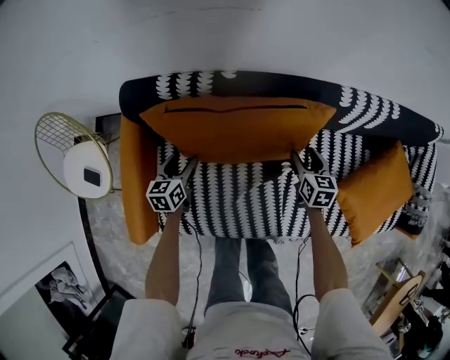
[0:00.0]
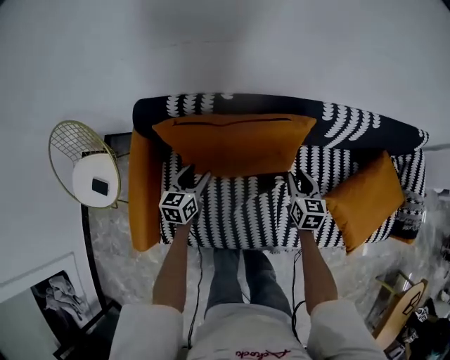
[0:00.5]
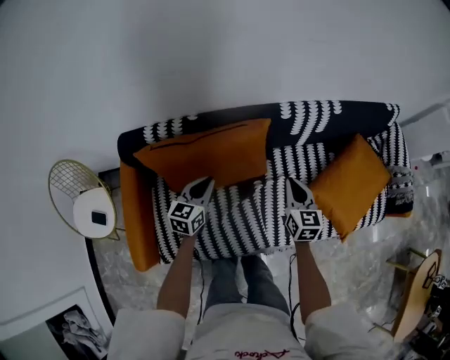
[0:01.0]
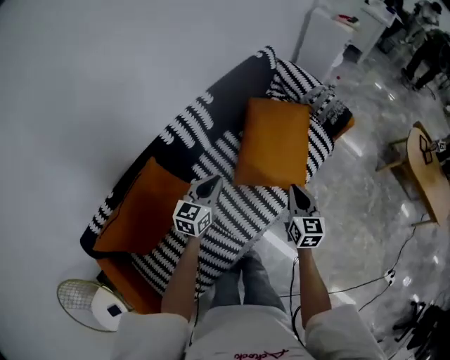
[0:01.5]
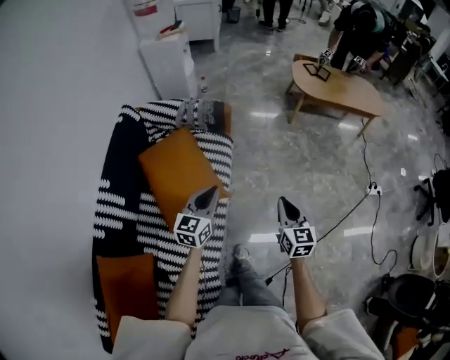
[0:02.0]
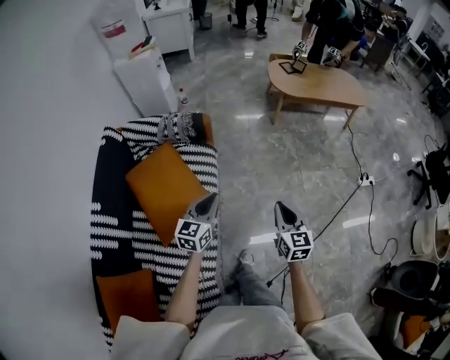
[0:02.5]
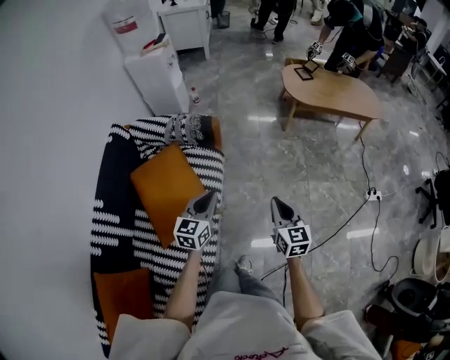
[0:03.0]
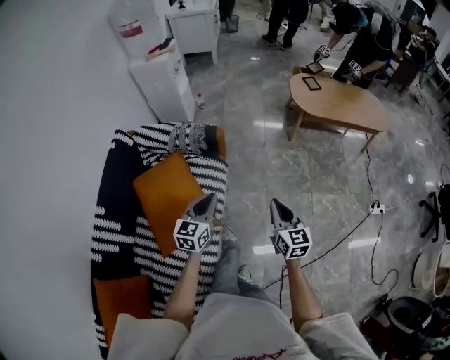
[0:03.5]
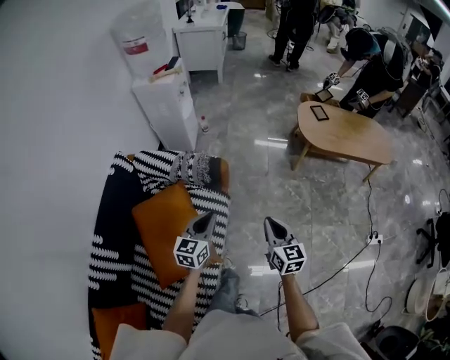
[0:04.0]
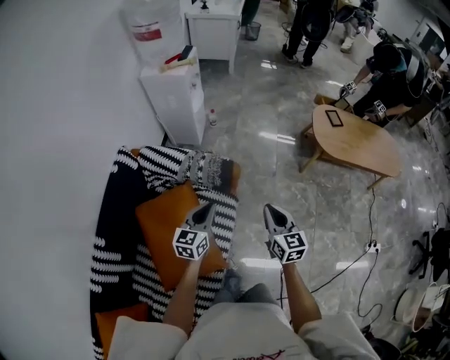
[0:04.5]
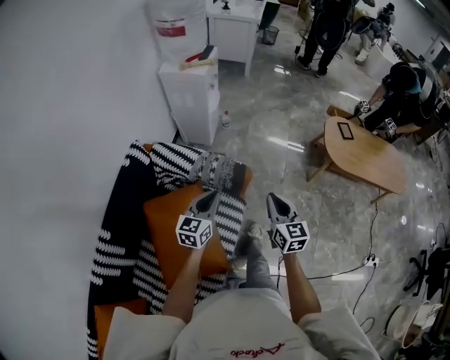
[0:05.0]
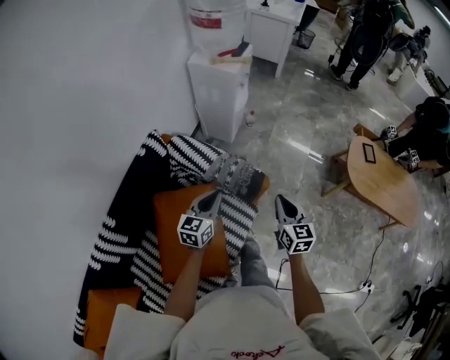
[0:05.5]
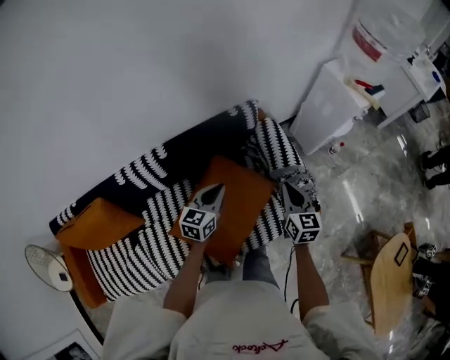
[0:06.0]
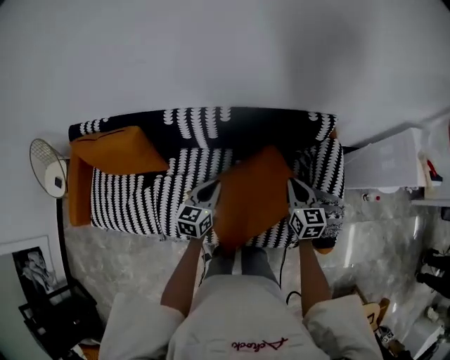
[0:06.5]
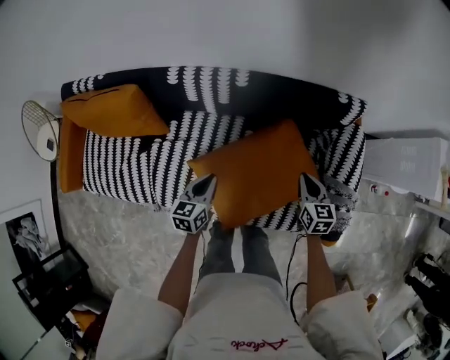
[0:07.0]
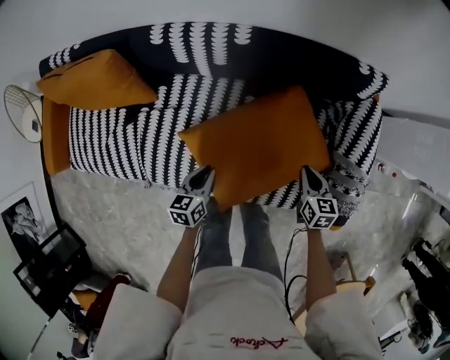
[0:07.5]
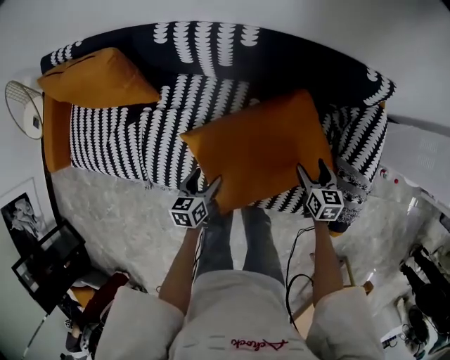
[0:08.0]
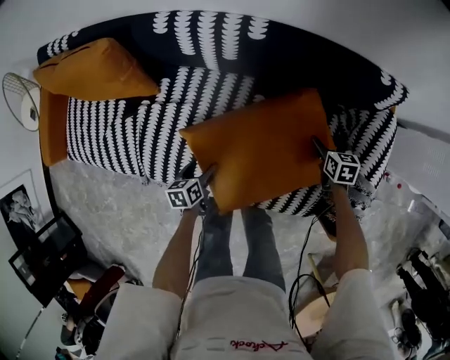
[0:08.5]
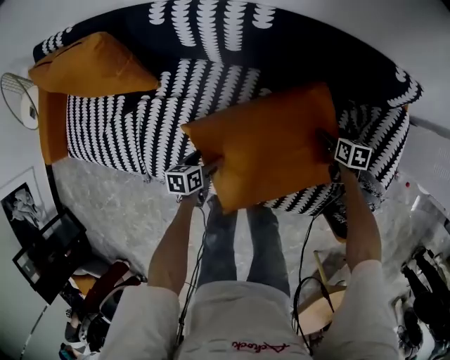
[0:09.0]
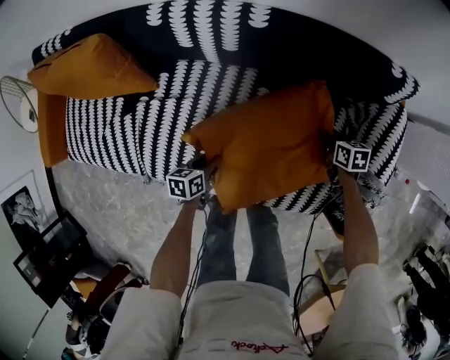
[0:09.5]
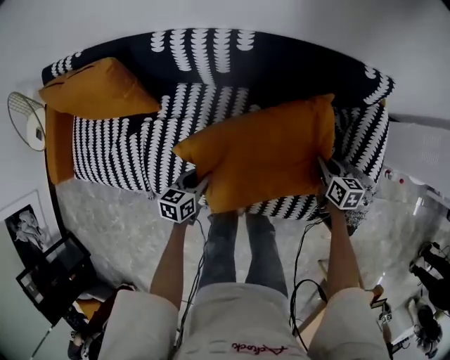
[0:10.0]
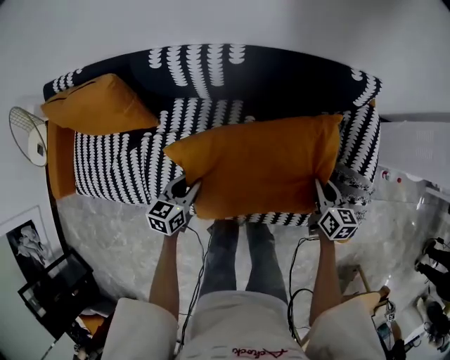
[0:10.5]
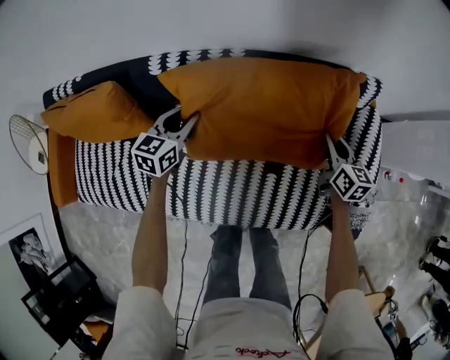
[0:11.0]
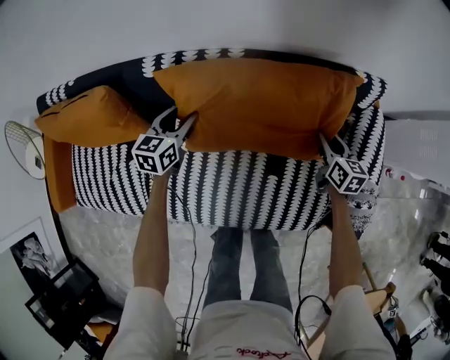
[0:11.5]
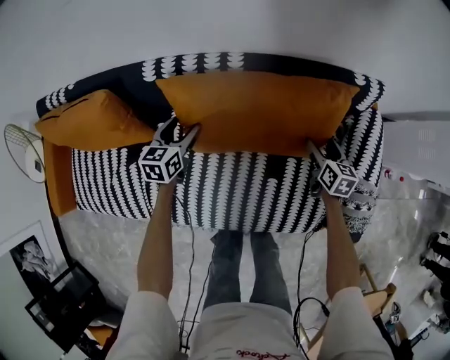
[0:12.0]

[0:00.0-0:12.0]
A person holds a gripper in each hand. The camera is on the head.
0:00.0 to 0:02.0: The pair of grippers is taken approximately 80 cm. The left gripper changes its angle by about 100 degrees, and closes its fingers; the right gripper changes its angle by roughly 90 degrees, and closes up.
0:02.0 to 0:04.0: Both grippers move forward, some 25 cm.
0:04.0 to 0:06.0: The left gripper shifts by some 30 cm, and turns by some 50 degrees. Meanwhile the right gripper shifts by roughly 50 cm, and swivels roughly 50 degrees.
0:06.0 to 0:08.0: Both grippers move downward, some 30 cm. The left gripper changes its angle by some 60 degrees, and opens up. The right gripper changes its angle by approximately 40 degrees, and opens its fingers.
0:08.0 to 0:10.0: The right gripper travels downward and back again, roughly 15 cm each way, and closes its fingers. The left gripper reaches roughly 10 cm downward, then returns, and closes its fingers.
0:10.0 to 0:12.0: The left gripper travels forward by roughly 25 cm, and opens its fingers. Meanwhile the right gripper moves forward, about 10 cm, and opens.

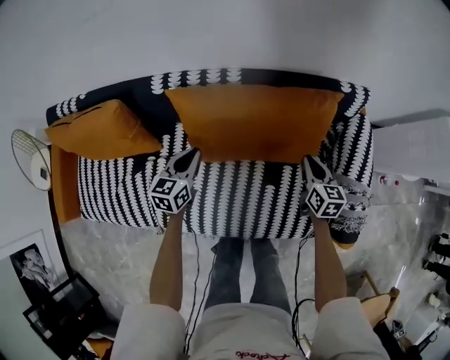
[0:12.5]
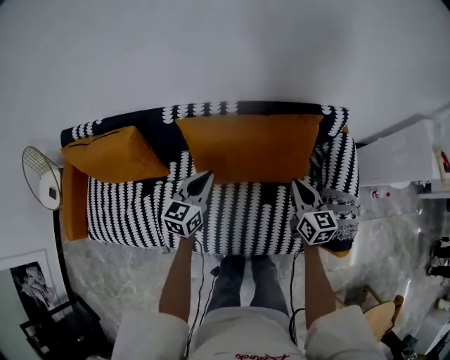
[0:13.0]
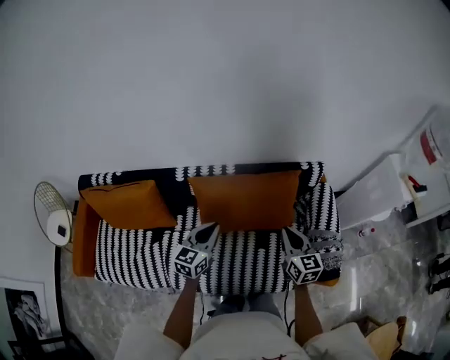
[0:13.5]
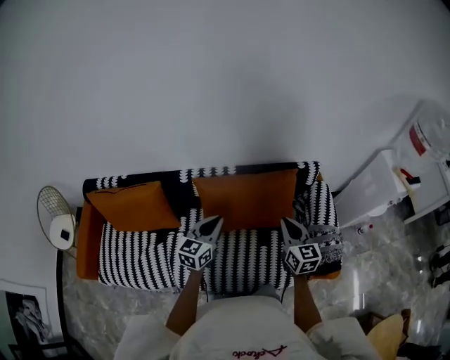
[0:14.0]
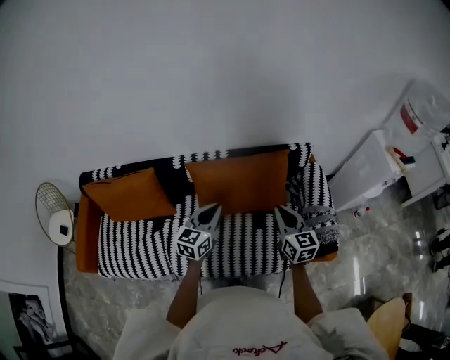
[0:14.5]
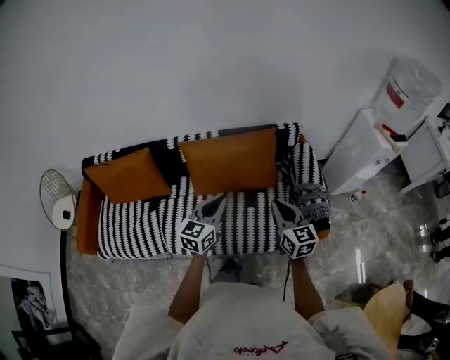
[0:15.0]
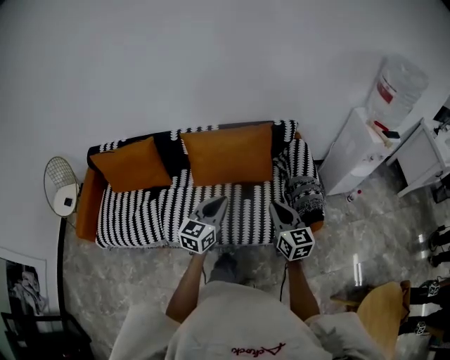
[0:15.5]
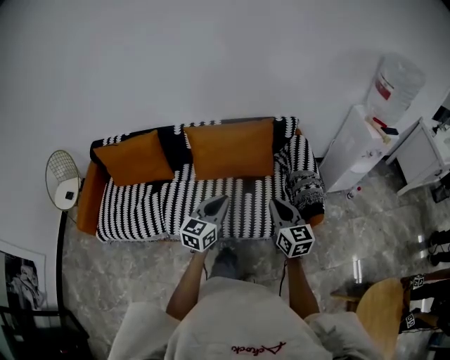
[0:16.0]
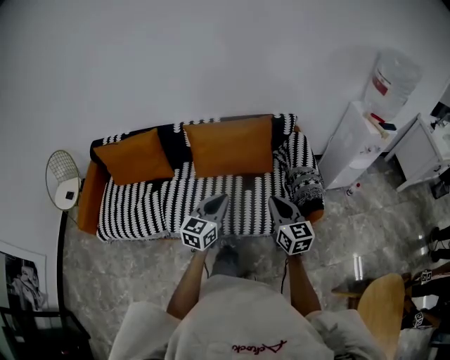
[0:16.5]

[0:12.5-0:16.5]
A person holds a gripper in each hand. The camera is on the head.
0:12.5 to 0:14.5: Both grippers travel together upward and backward, some 30 cm. The left gripper rotates about 20 degrees. The right gripper changes its angle by roughly 20 degrees.
0:14.5 to 0:16.5: The right gripper travels backward by about 25 cm; the left gripper shifts approximately 30 cm backward and to the right.

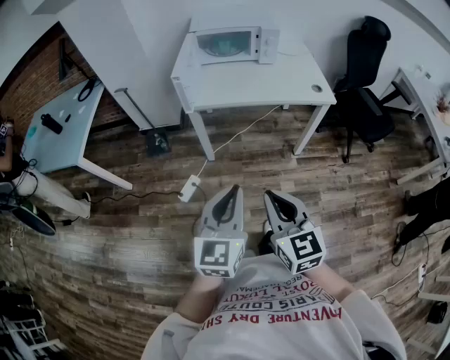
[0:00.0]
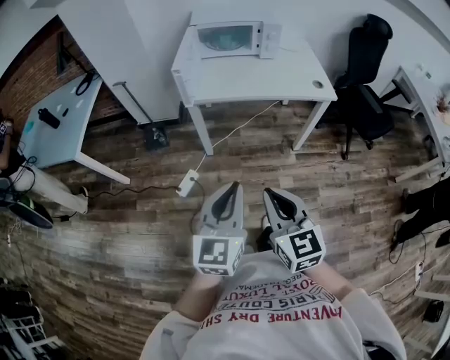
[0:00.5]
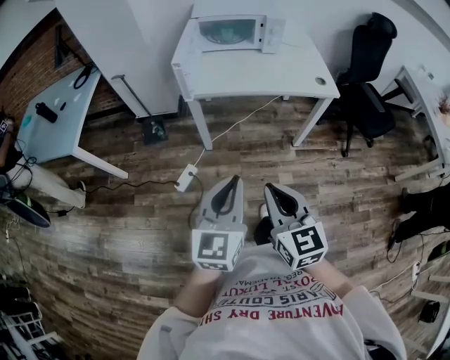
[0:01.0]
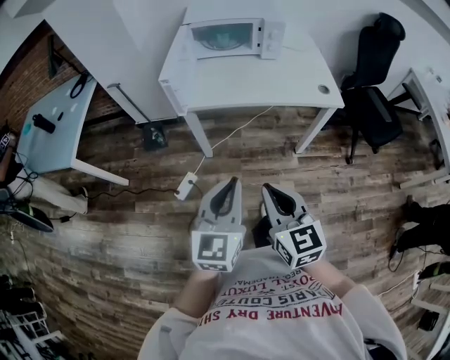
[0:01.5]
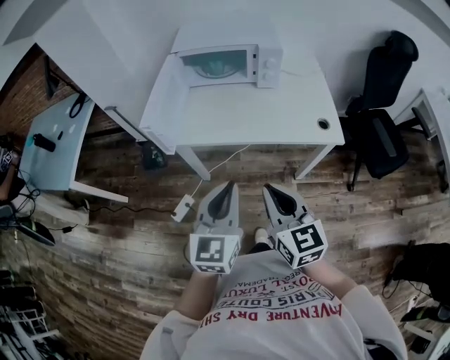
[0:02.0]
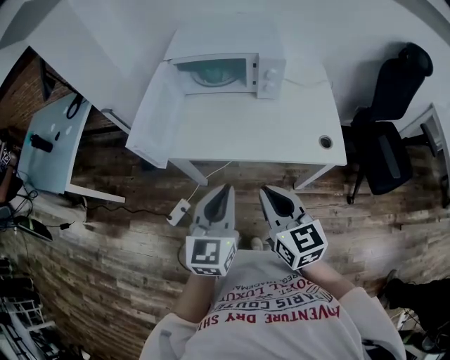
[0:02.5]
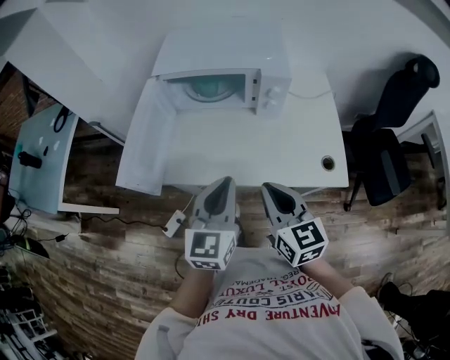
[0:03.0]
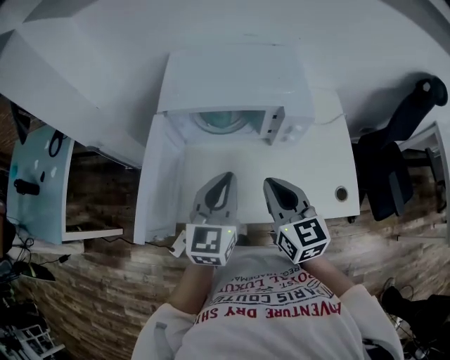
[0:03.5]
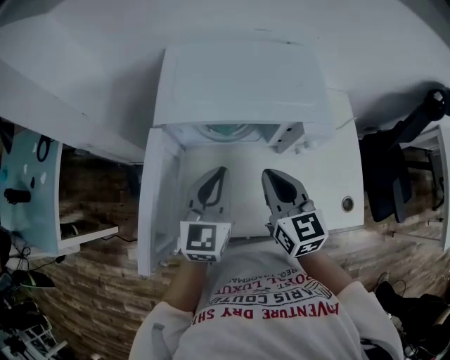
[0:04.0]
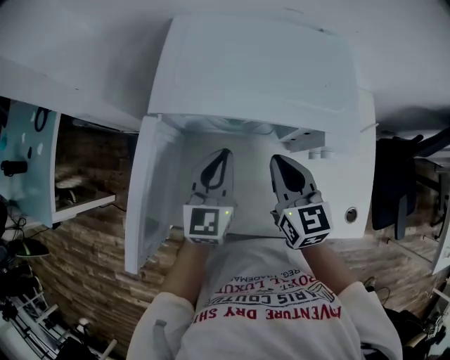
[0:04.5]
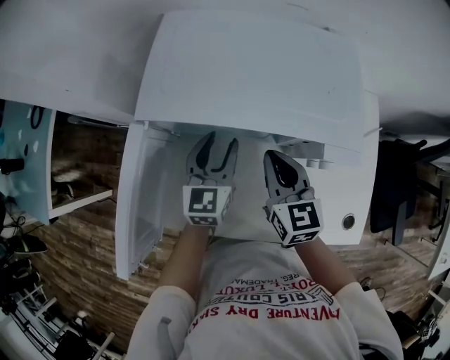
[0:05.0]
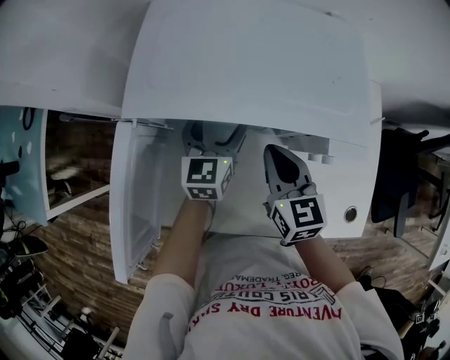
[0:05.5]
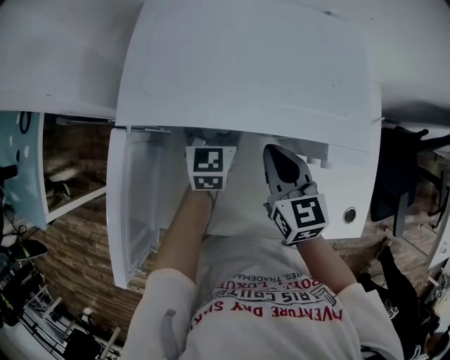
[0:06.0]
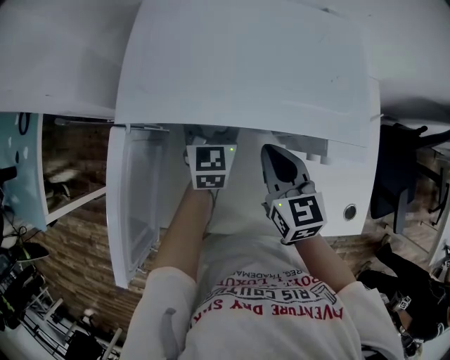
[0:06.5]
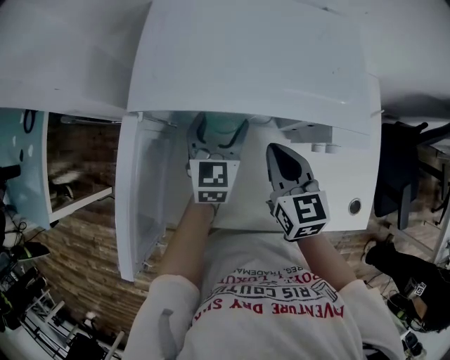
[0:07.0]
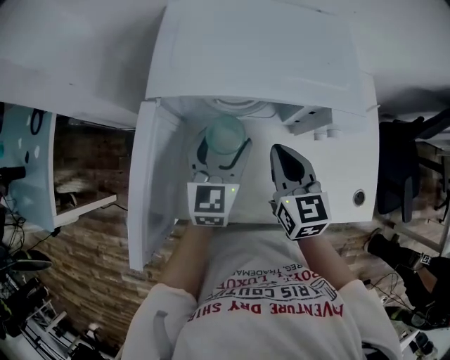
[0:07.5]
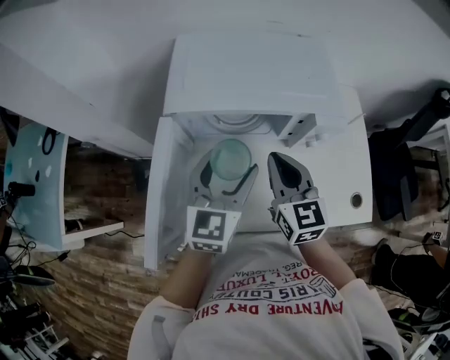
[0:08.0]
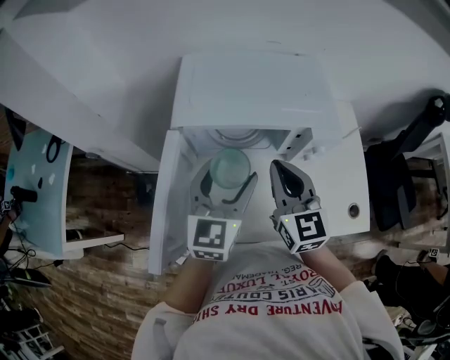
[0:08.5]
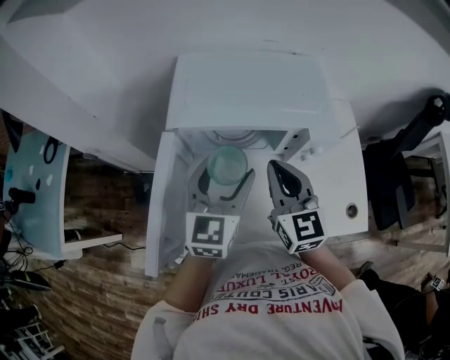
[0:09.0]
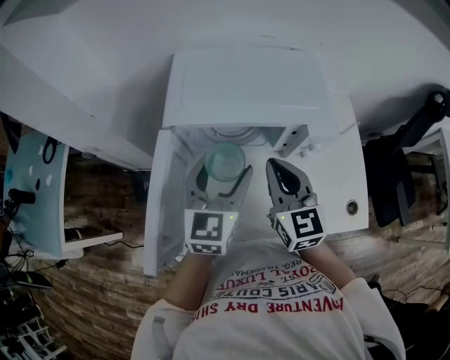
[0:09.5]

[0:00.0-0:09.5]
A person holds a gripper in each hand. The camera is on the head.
0:00.0 to 0:02.0: Both grippers move forward and to the right, roughly 25 cm.
0:02.0 to 0:04.0: The pair of grippers is taken forward, roughly 40 cm.
0:04.0 to 0:05.5: The right gripper shifts some 10 cm forward and downward. The left gripper travels forward and downward by roughly 20 cm, and opens.
0:05.5 to 0:07.5: The left gripper shifts approximately 10 cm backward; the right gripper changes place by roughly 5 cm.
0:07.5 to 0:09.5: The grippers both shift upward by about 10 cm.

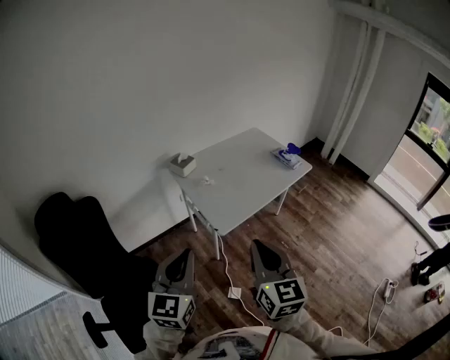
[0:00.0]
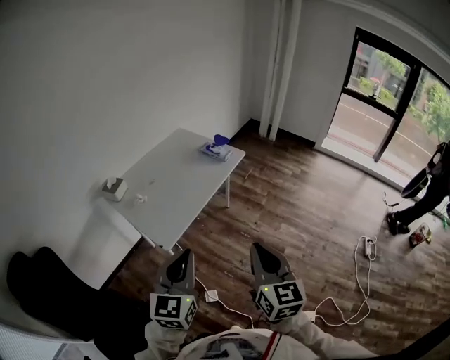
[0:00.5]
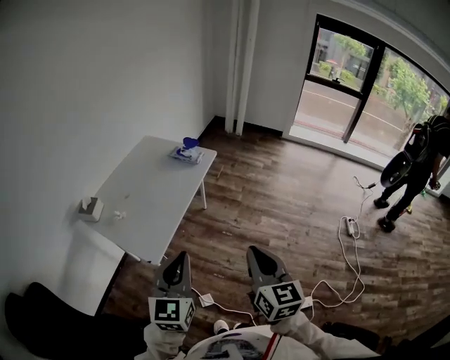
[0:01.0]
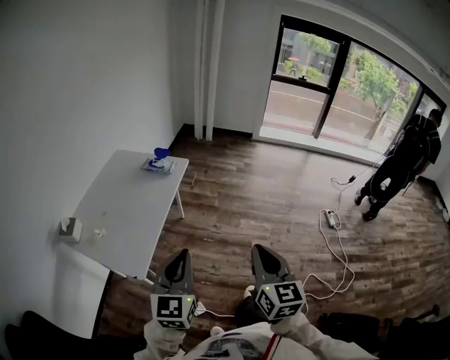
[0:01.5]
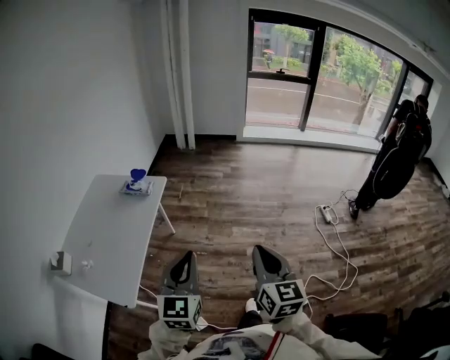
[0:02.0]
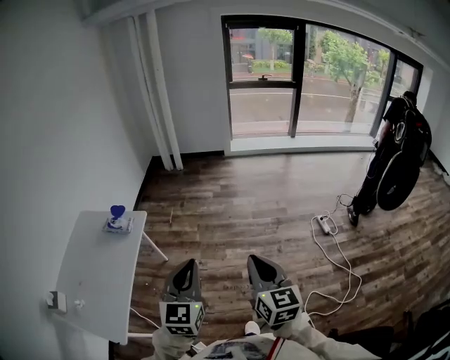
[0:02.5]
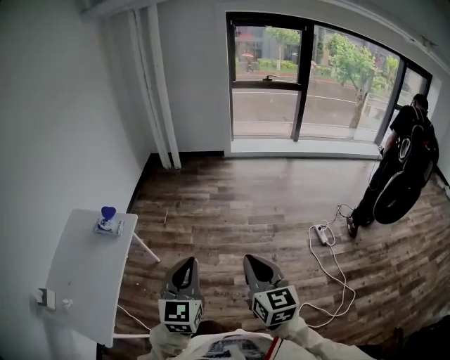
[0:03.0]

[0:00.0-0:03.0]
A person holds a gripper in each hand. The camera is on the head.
0:00.0 to 0:01.5: The left gripper changes place by approximately 30 cm, and changes its angle by roughly 30 degrees. The right gripper ends up some 25 cm from where it was, and rotates approximately 40 degrees.
0:01.5 to 0:03.0: Both grippers travel together forward and to the right, some 35 cm.
